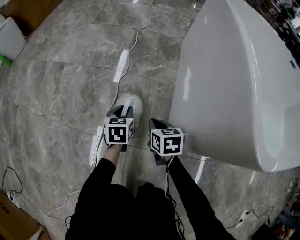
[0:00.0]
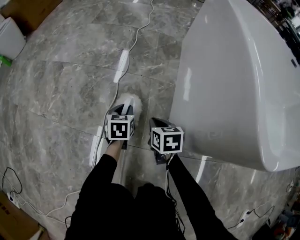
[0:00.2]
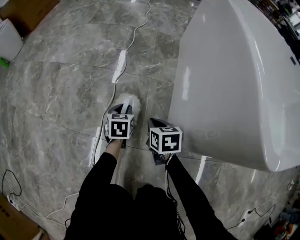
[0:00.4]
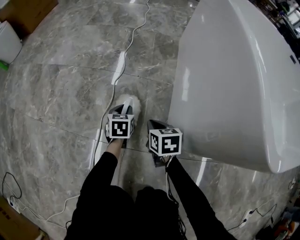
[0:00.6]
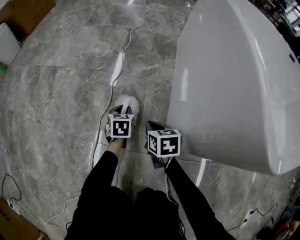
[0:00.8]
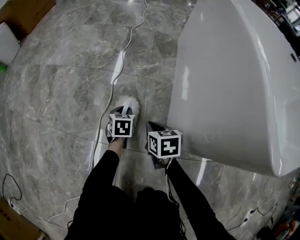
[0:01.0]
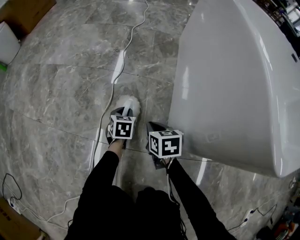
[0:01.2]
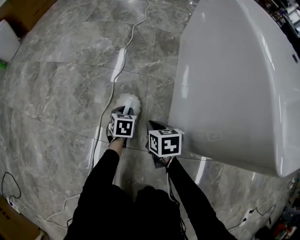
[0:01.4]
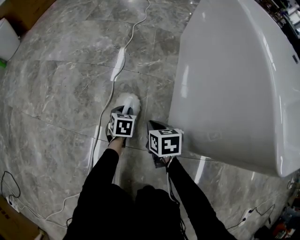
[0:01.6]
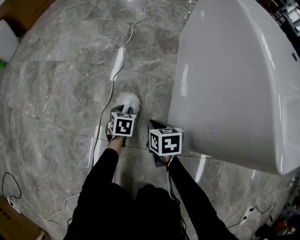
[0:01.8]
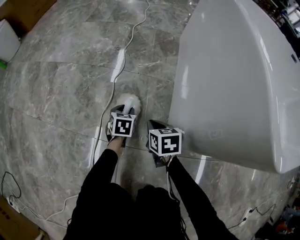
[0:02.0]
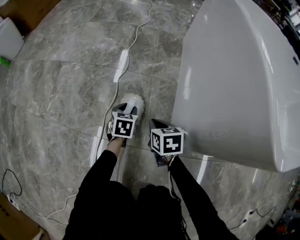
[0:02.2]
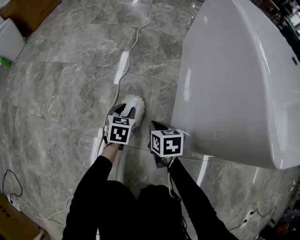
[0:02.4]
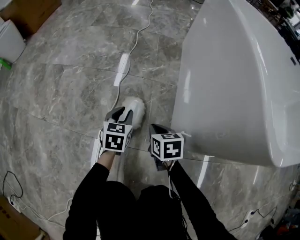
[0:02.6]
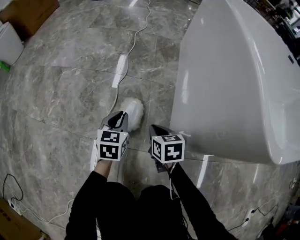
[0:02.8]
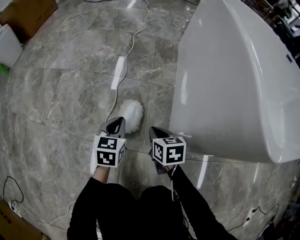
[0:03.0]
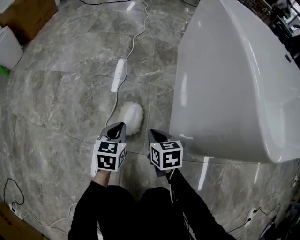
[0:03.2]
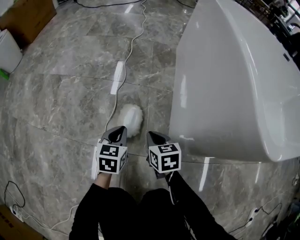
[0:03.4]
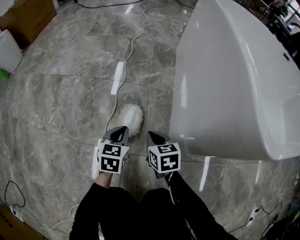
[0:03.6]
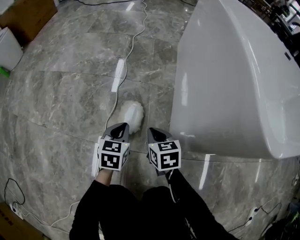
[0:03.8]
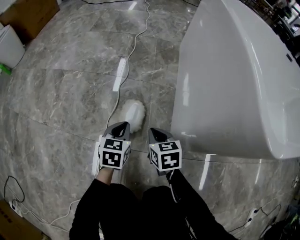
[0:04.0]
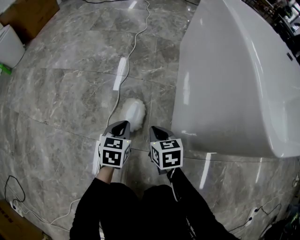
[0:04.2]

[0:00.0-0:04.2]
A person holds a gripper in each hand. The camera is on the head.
0:00.0 to 0:01.4: The left gripper heads downward, covering about 10 cm.
0:01.4 to 0:02.8: The left gripper travels upward by about 15 cm.
0:02.8 to 0:04.2: There are only small adjustments of the grippers.

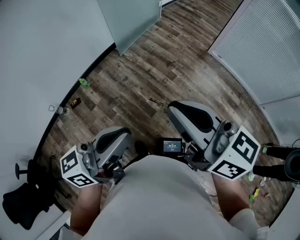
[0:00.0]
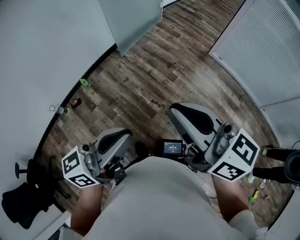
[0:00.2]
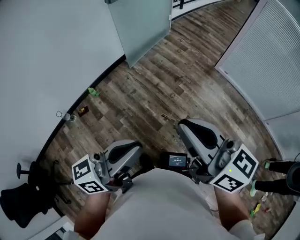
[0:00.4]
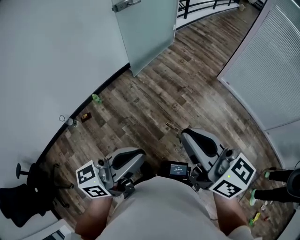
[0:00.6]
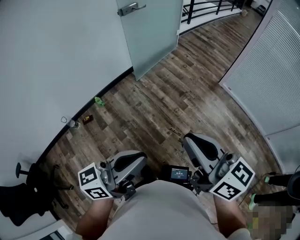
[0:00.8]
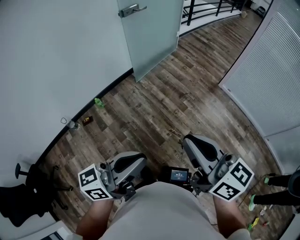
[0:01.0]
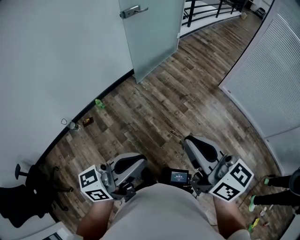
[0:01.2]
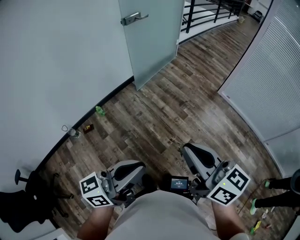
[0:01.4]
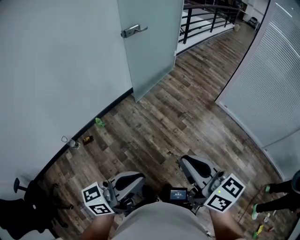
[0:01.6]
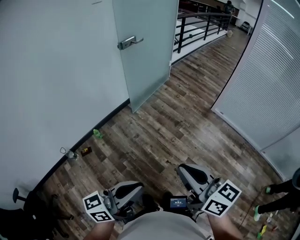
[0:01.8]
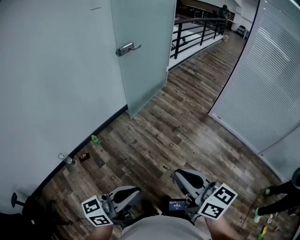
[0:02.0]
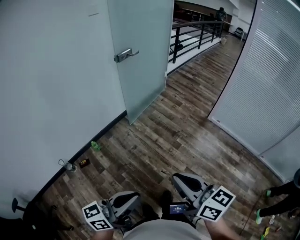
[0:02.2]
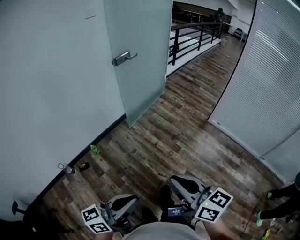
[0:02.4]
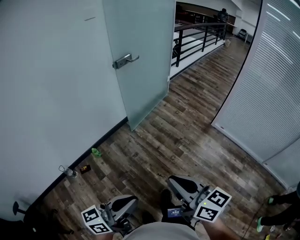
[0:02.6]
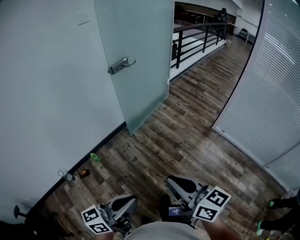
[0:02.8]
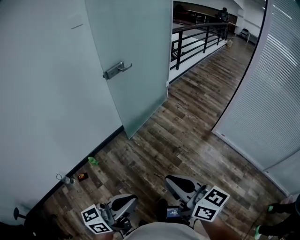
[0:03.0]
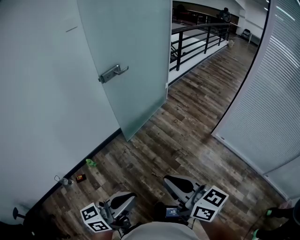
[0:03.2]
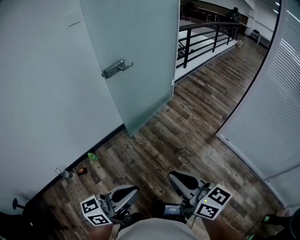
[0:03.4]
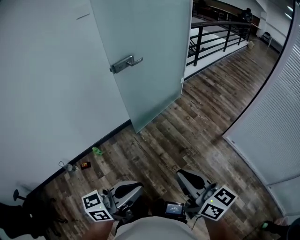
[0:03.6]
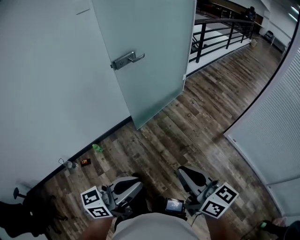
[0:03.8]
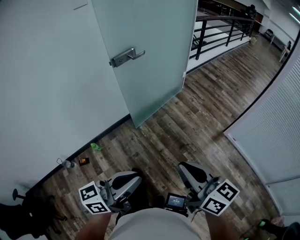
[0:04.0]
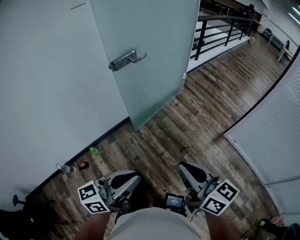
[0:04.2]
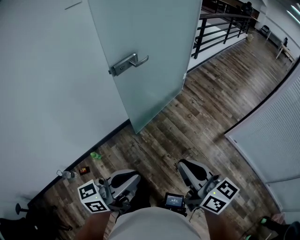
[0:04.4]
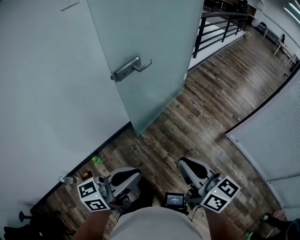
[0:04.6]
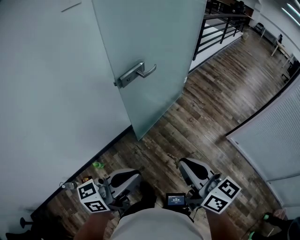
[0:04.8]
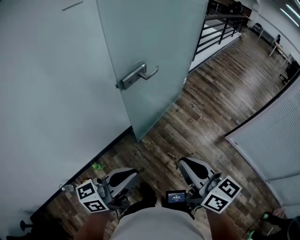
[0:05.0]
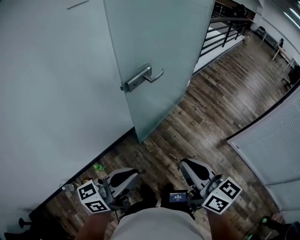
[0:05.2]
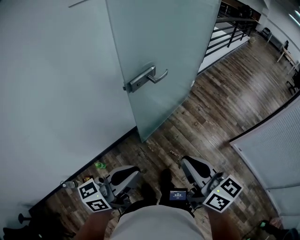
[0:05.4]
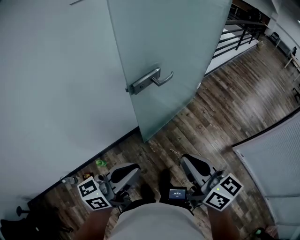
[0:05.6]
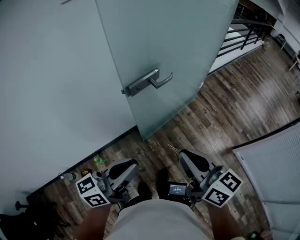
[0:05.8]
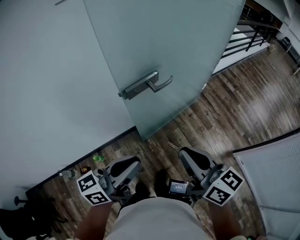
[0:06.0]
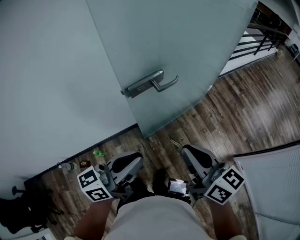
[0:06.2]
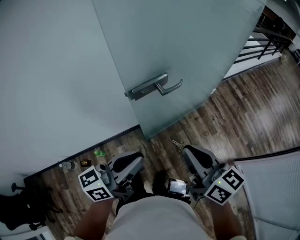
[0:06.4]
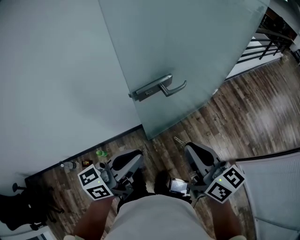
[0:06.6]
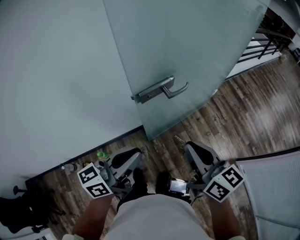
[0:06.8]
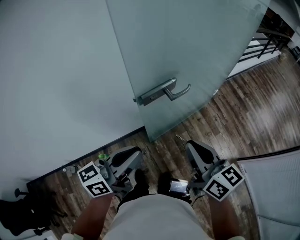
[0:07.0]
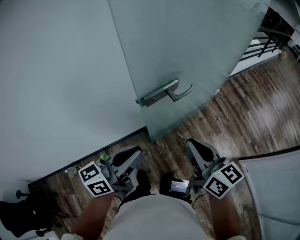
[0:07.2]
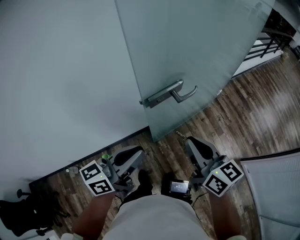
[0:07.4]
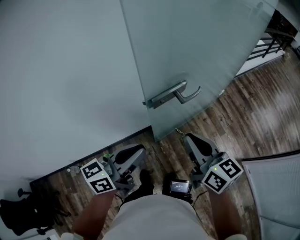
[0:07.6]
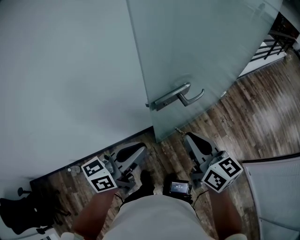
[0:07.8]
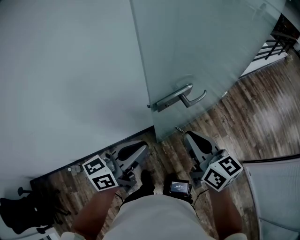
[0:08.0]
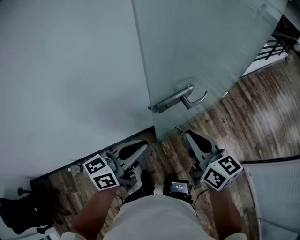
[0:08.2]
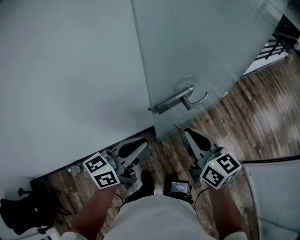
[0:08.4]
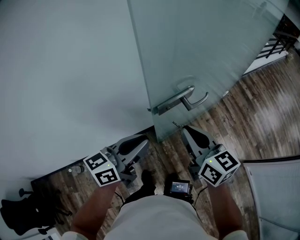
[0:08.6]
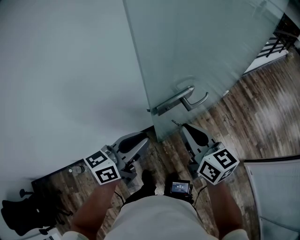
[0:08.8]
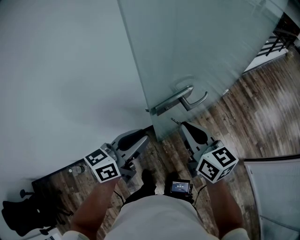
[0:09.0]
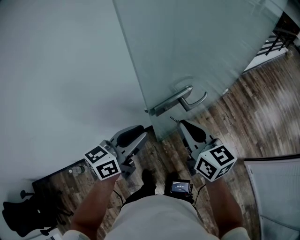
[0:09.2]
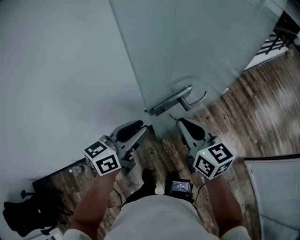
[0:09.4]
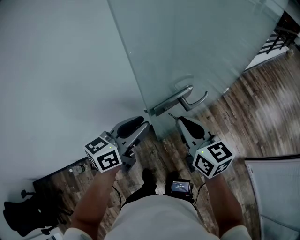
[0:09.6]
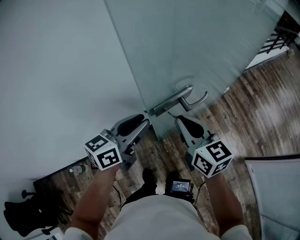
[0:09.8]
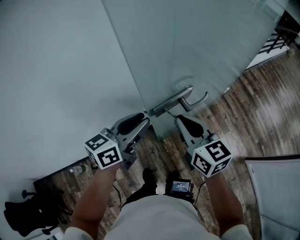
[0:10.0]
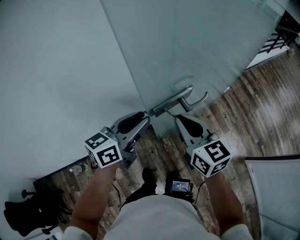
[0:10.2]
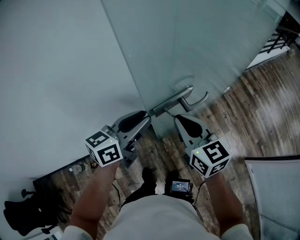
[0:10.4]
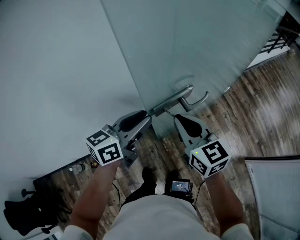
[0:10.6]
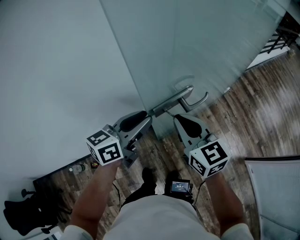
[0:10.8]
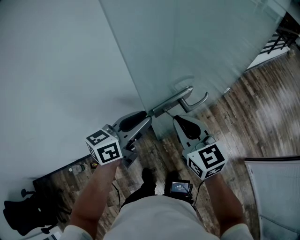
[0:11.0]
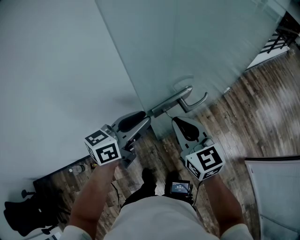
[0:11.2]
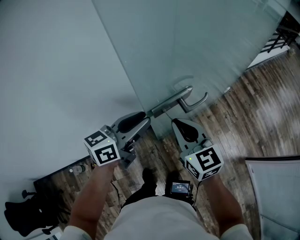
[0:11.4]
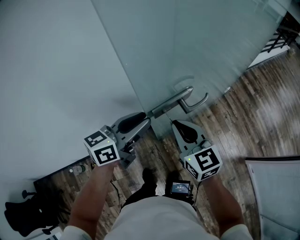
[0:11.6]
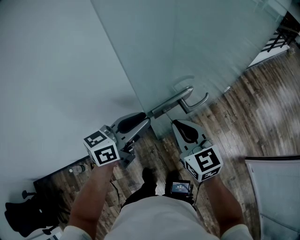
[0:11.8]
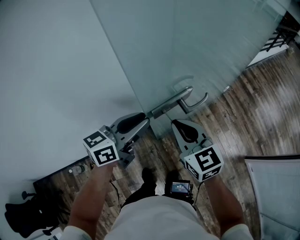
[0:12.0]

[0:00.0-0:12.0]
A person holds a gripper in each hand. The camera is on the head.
0:00.0 to 0:01.6: The left gripper is displaced to the left by some 5 cm.
0:01.6 to 0:03.0: Both grippers travel together forward, approximately 20 cm.
0:03.0 to 0:04.4: Both grippers travel together forward, some 25 cm.
0:04.4 to 0:06.0: The grippers both shift forward by some 25 cm.
0:06.0 to 0:07.6: The two grippers go roughly 10 cm forward and to the left.
0:07.6 to 0:09.0: The two grippers go about 5 cm forward.
0:09.0 to 0:10.4: The left gripper heads forward, covering some 5 cm.
0:10.4 to 0:12.0: There are only small adjustments of the grippers.

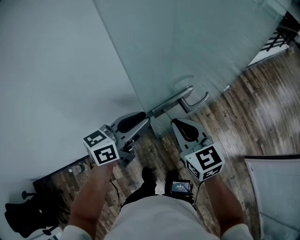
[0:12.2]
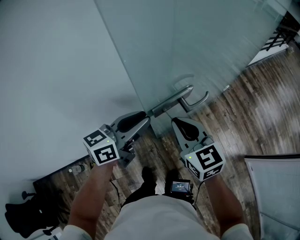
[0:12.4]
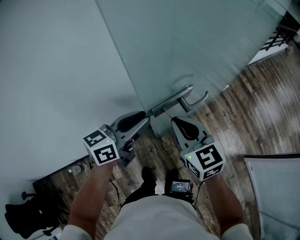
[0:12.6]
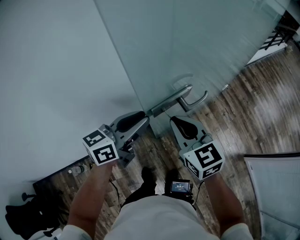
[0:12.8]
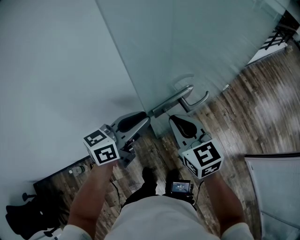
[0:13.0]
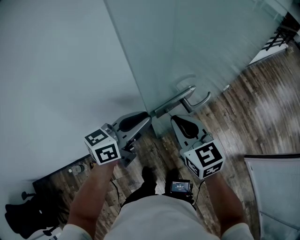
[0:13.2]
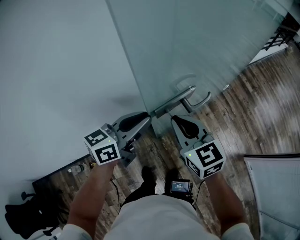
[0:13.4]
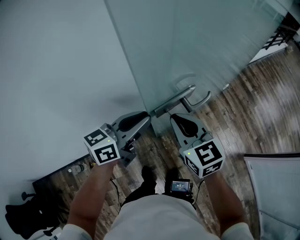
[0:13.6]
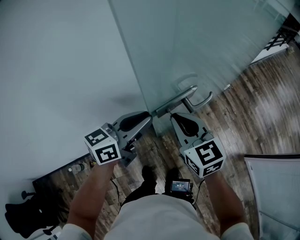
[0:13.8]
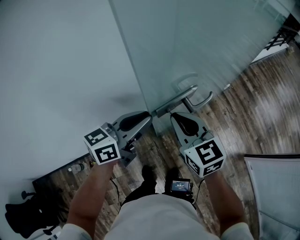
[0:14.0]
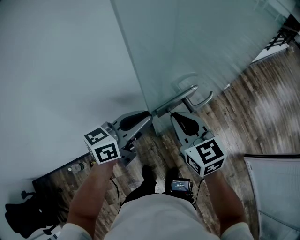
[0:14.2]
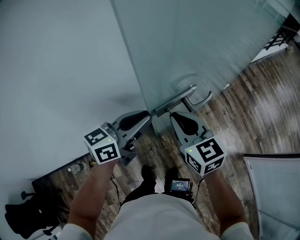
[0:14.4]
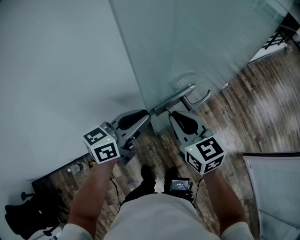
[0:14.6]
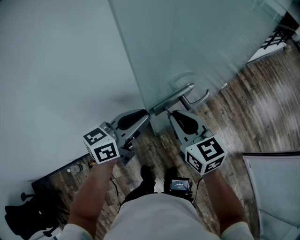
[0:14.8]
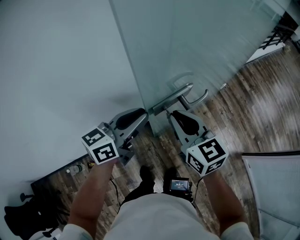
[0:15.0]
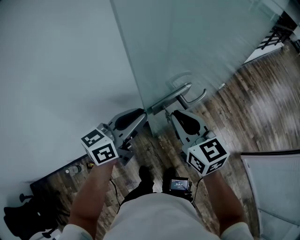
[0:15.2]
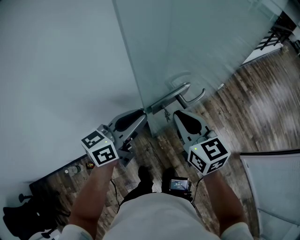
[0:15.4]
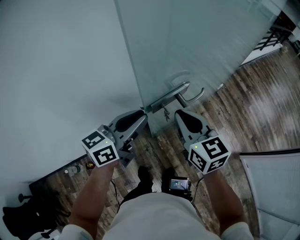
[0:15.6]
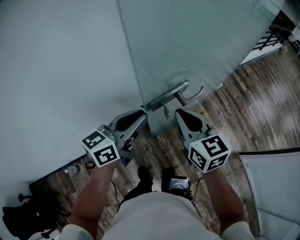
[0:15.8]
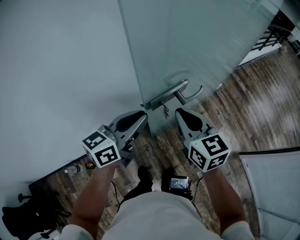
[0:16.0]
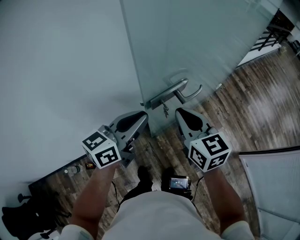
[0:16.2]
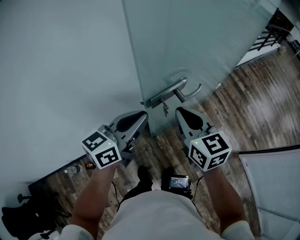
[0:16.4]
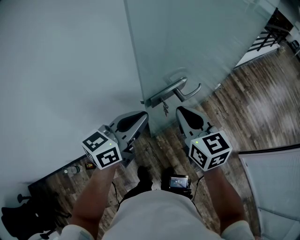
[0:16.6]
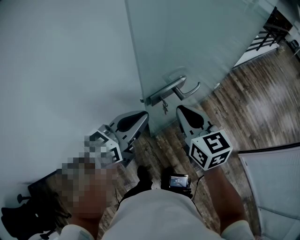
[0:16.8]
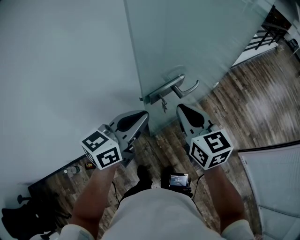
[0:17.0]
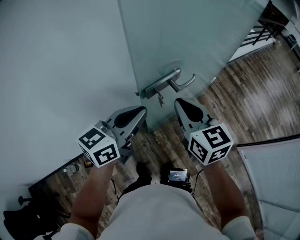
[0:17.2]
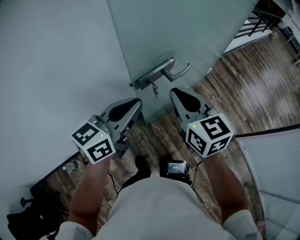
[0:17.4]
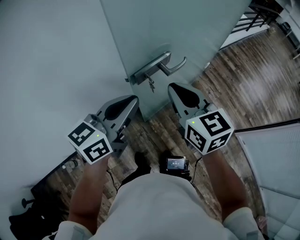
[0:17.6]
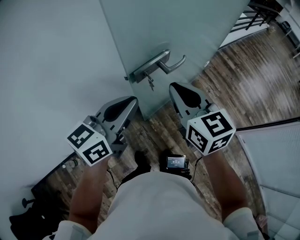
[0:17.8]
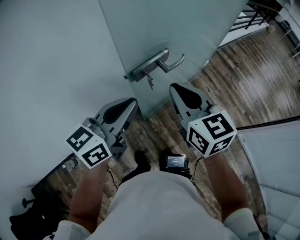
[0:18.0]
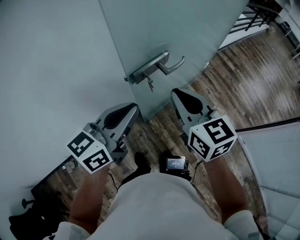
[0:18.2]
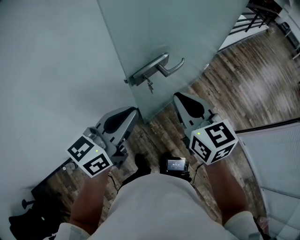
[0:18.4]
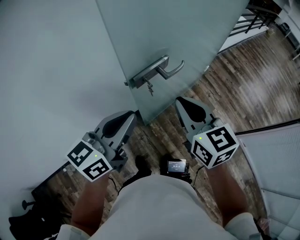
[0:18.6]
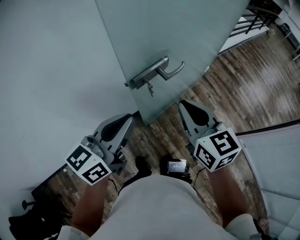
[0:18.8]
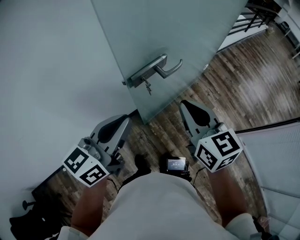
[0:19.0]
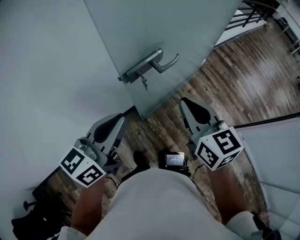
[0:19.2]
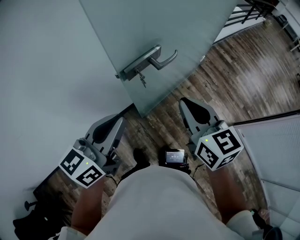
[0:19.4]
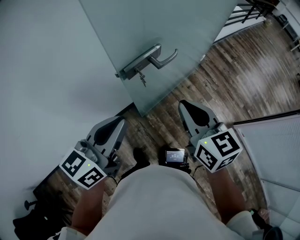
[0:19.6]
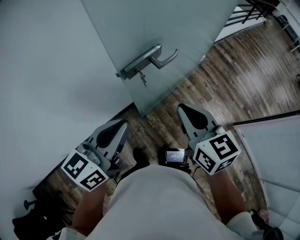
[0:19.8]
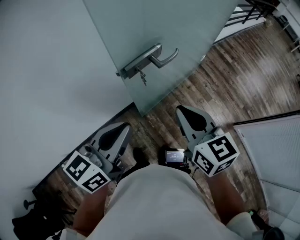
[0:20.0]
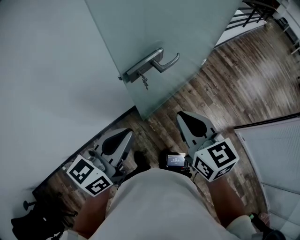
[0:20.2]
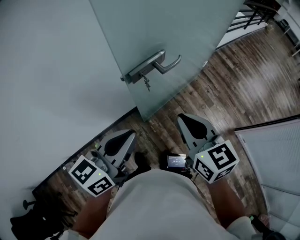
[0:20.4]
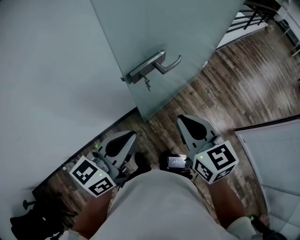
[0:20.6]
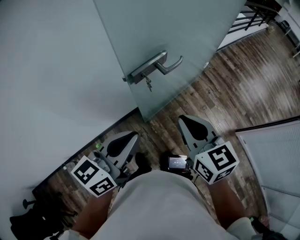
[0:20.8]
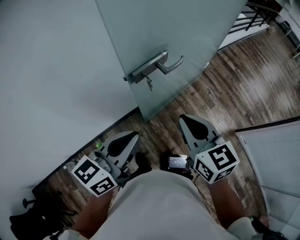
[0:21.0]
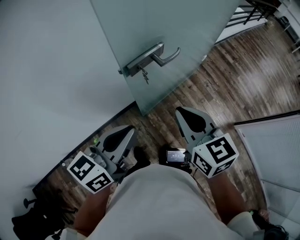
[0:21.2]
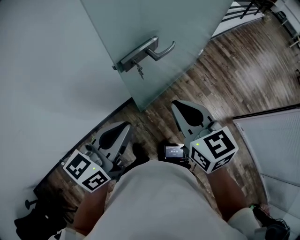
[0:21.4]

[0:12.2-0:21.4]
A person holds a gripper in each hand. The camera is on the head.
0:12.2 to 0:15.2: The grippers make only small movements.
0:15.2 to 0:16.8: The left gripper shifts by roughly 5 cm.
0:16.8 to 0:18.4: The left gripper is displaced backward by roughly 5 cm. Meanwhile the right gripper moves some 5 cm.
0:18.4 to 0:19.8: The right gripper shifts by roughly 5 cm.
0:19.8 to 0:21.4: There are only small adjustments of the grippers.
